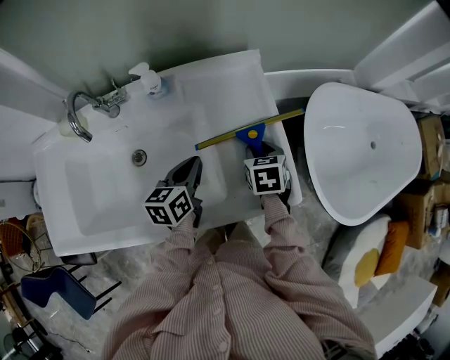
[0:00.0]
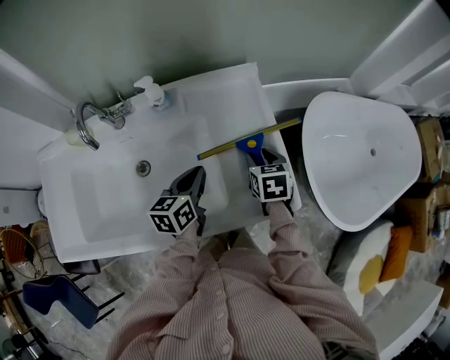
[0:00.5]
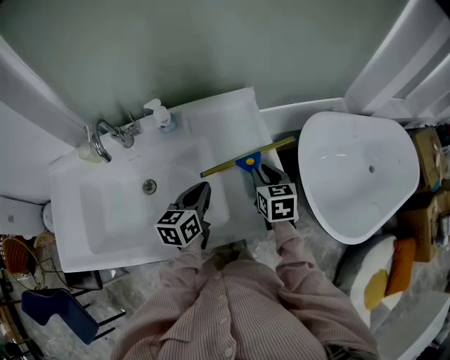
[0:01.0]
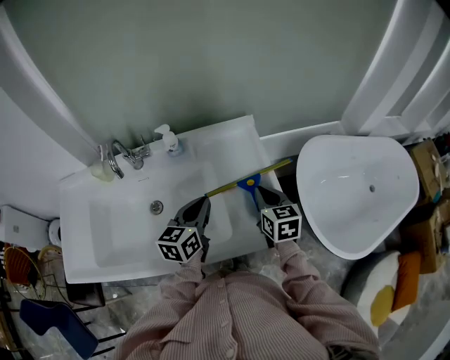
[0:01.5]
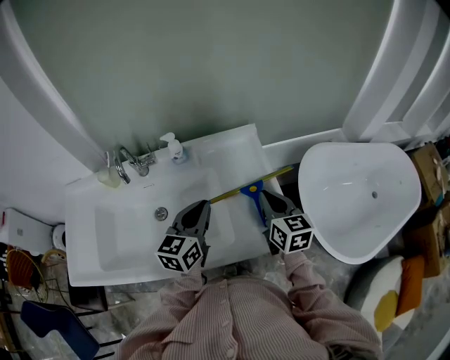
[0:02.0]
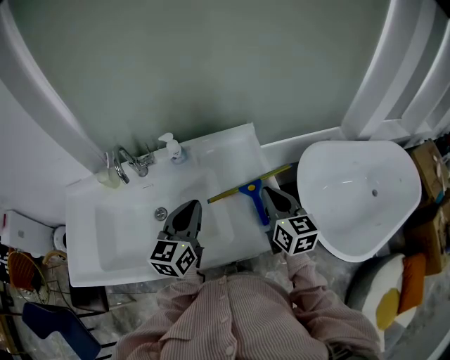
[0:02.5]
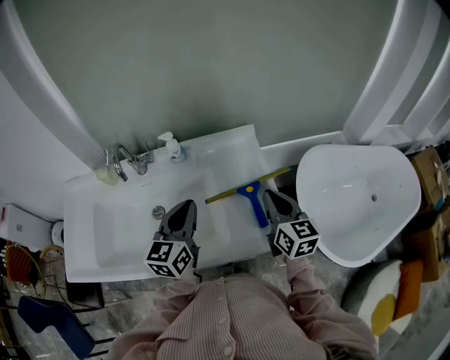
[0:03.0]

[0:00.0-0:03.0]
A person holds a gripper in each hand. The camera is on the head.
0:00.0 to 0:01.5: Both grippers move upward, some 10 cm. The right gripper turns by approximately 30 degrees, and closes up.
0:01.5 to 0:03.0: Both grippers move upward, about 10 cm.

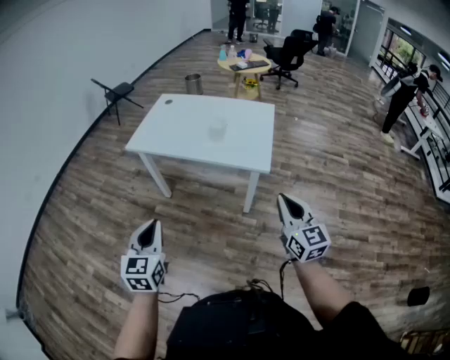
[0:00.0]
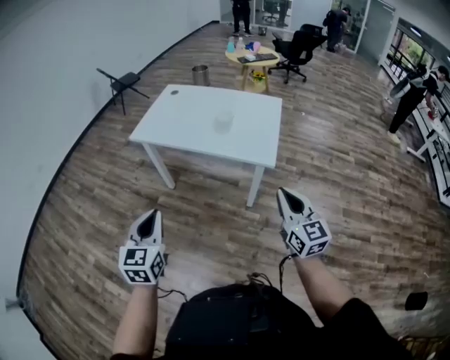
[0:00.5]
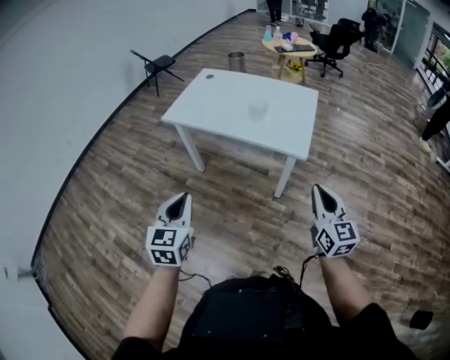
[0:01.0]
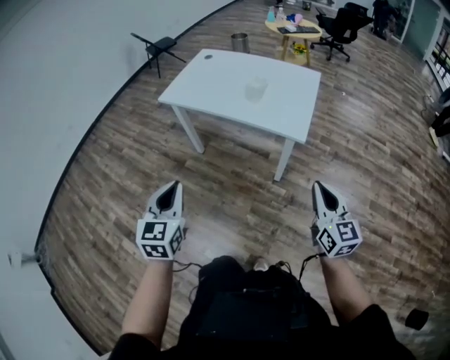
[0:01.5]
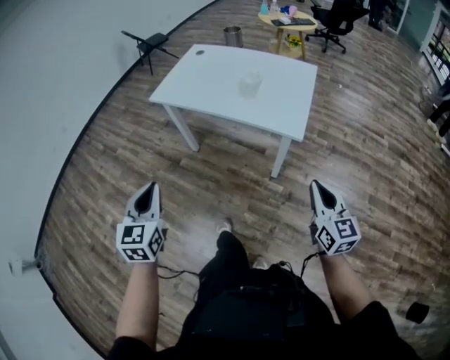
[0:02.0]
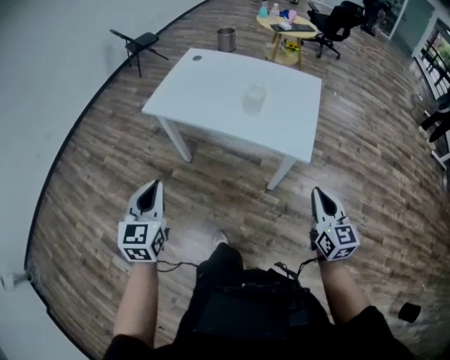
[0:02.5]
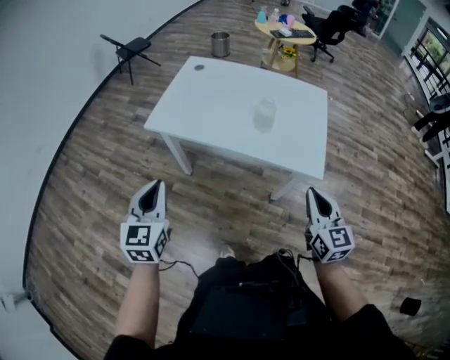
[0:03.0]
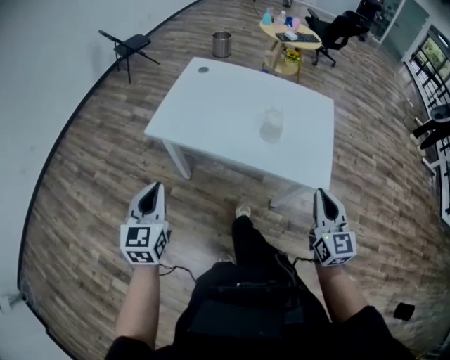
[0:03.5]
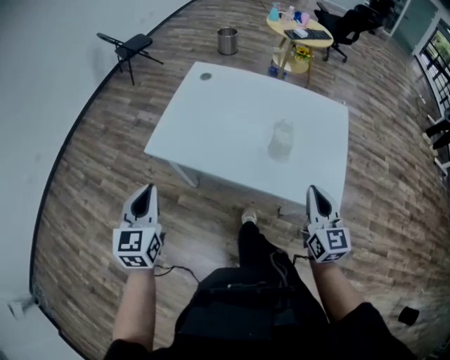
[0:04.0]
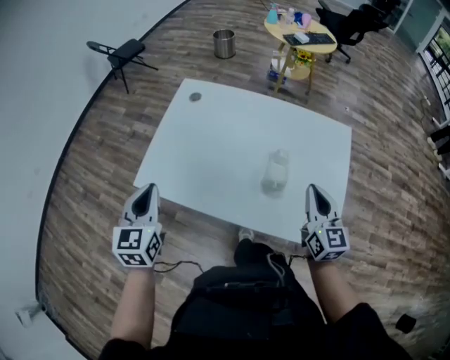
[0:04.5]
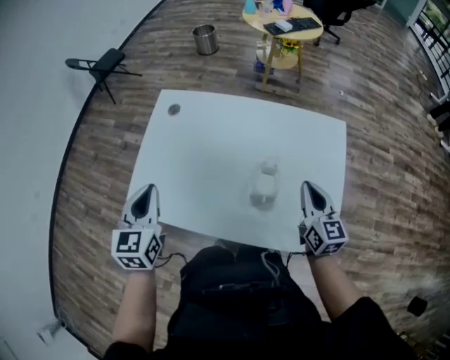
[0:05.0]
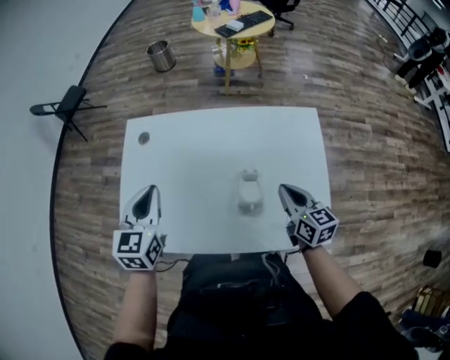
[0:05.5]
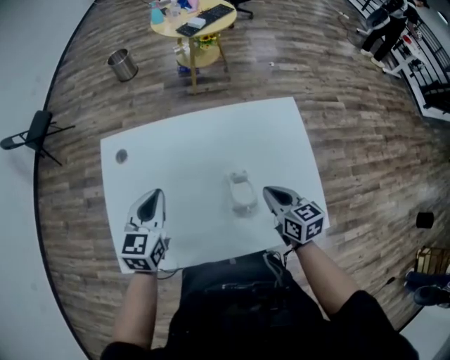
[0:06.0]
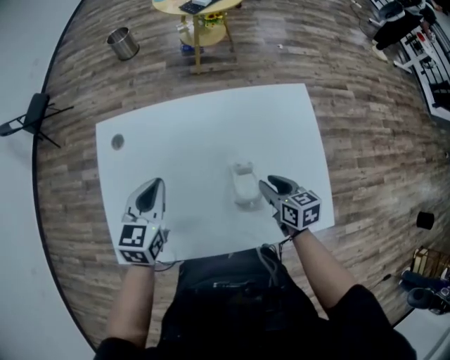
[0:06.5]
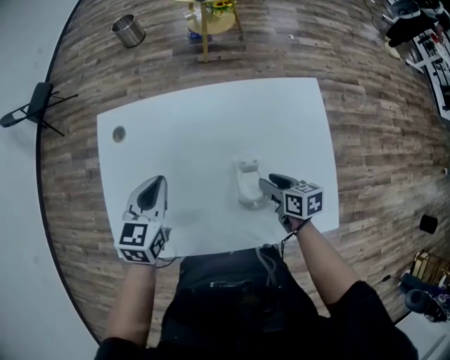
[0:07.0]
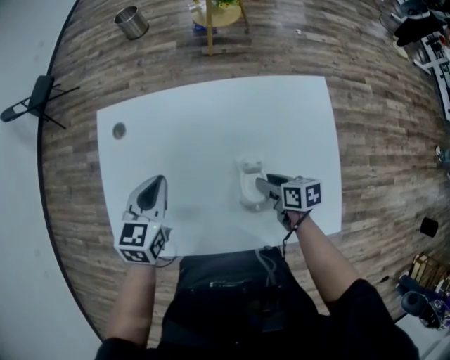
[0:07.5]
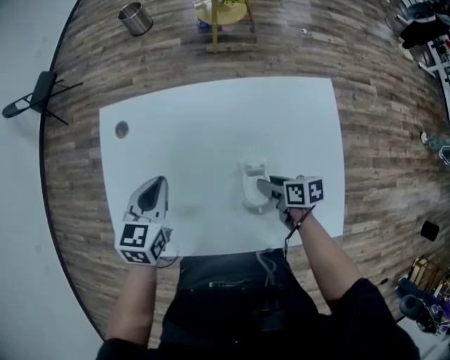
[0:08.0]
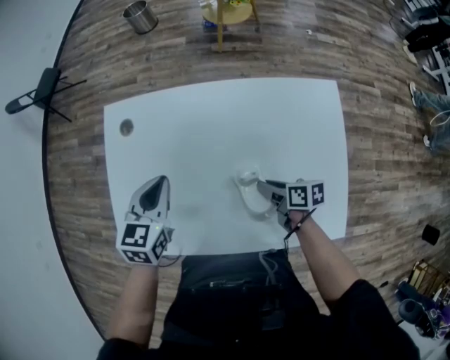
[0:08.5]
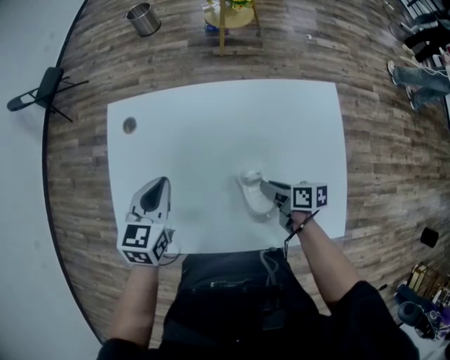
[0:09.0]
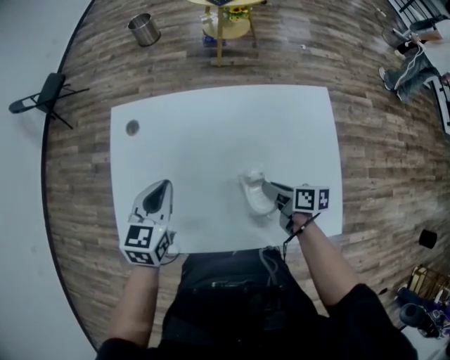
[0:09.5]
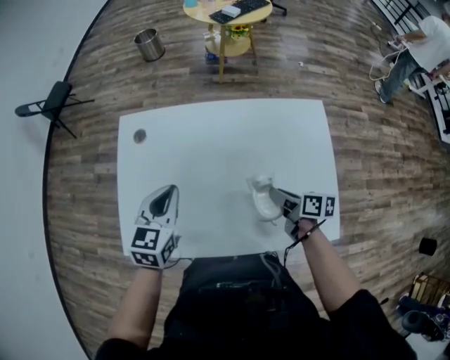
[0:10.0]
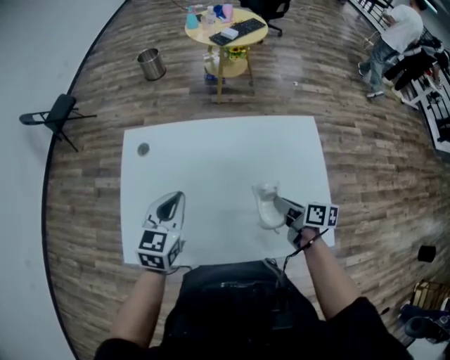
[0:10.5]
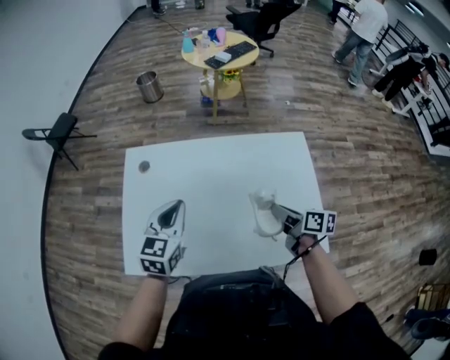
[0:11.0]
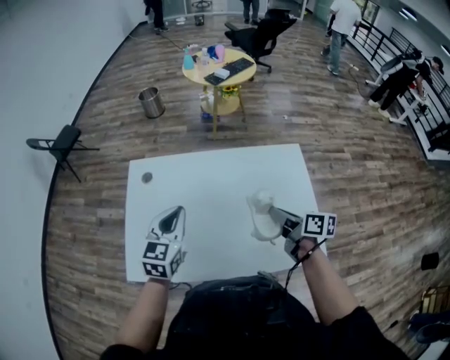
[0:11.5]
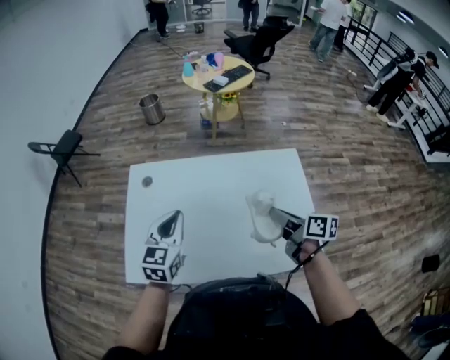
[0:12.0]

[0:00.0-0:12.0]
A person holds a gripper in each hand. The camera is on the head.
0:00.0 to 0:02.0: The right gripper is displaced downward and to the right by about 10 cm.
0:02.0 to 0:04.0: The left gripper travels forward by some 40 cm, while the right gripper heads forward and to the left, covering about 40 cm.
0:04.0 to 0:06.0: The right gripper travels forward and downward by some 25 cm, and swivels roughly 30 degrees, while the left gripper travels forward and to the right by some 40 cm, and swivels approximately 40 degrees.
0:06.0 to 0:08.0: The left gripper goes about 5 cm downward; the right gripper goes roughly 15 cm downward, rotates some 40 degrees, and opens its fingers.
0:08.0 to 0:10.0: The right gripper shifts approximately 5 cm upward; the left gripper moves some 5 cm.
0:10.0 to 0:12.0: The left gripper moves upward, some 5 cm. Meanwhile the right gripper shifts about 15 cm upward.

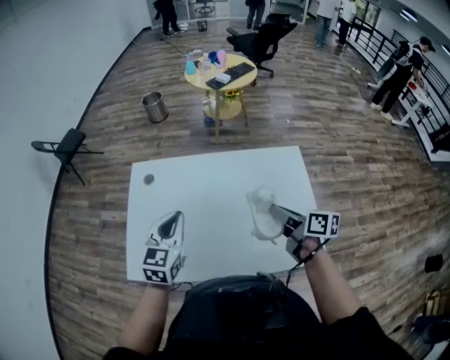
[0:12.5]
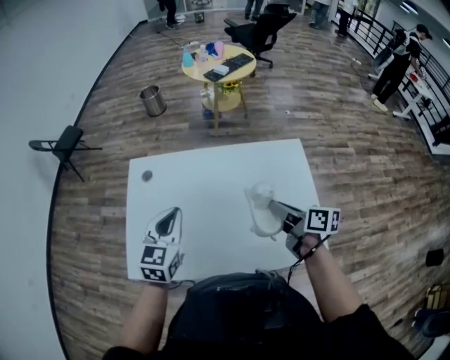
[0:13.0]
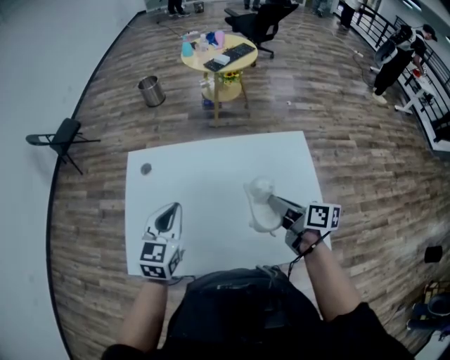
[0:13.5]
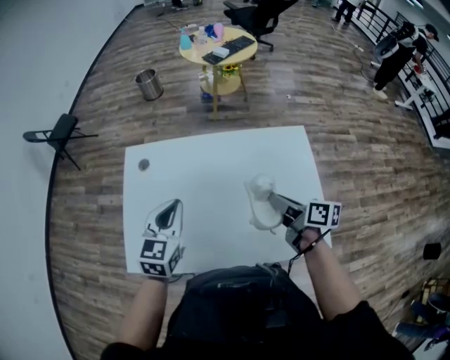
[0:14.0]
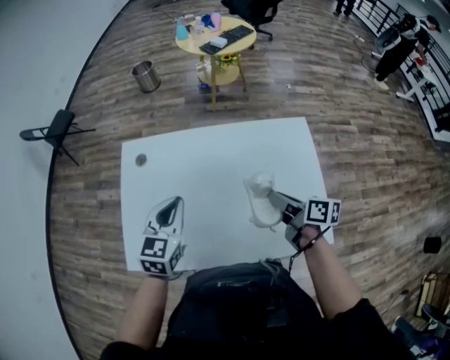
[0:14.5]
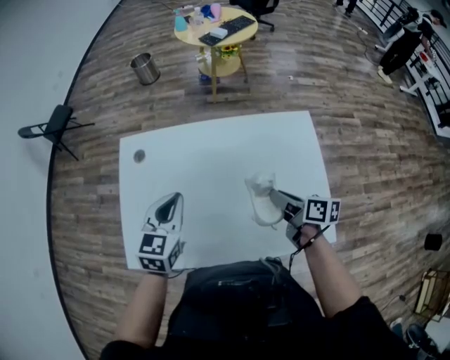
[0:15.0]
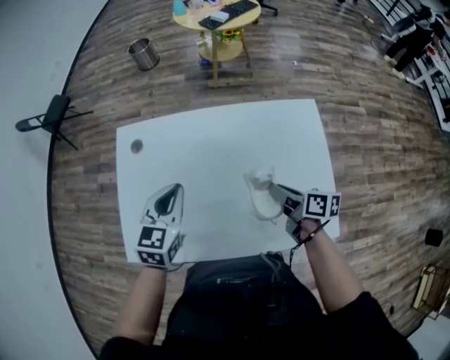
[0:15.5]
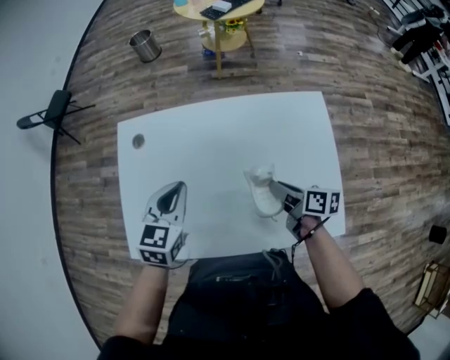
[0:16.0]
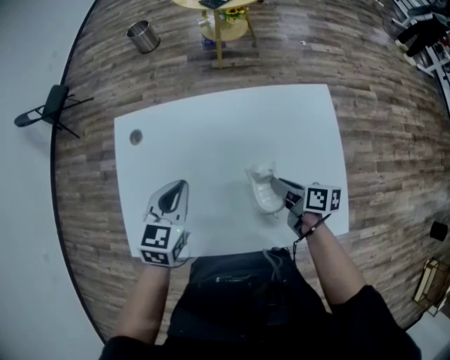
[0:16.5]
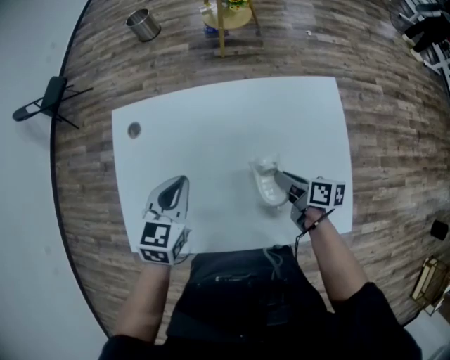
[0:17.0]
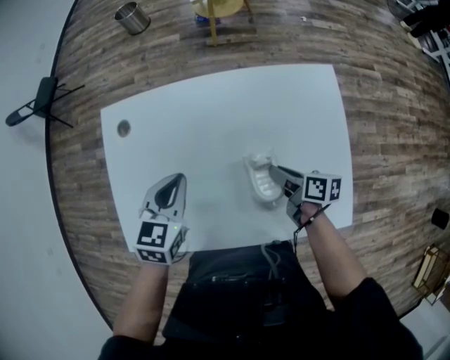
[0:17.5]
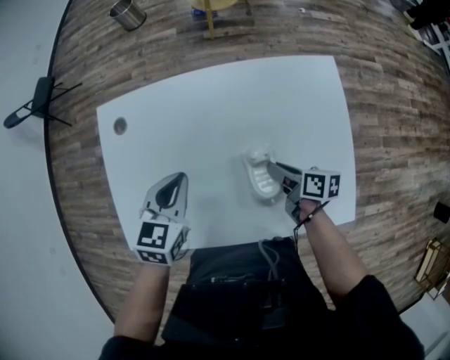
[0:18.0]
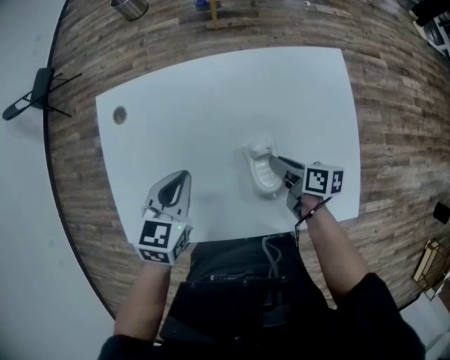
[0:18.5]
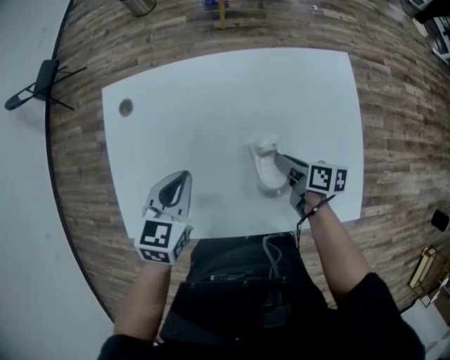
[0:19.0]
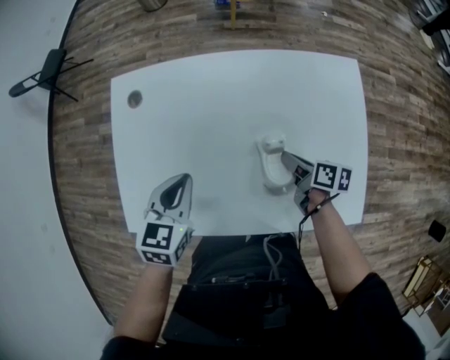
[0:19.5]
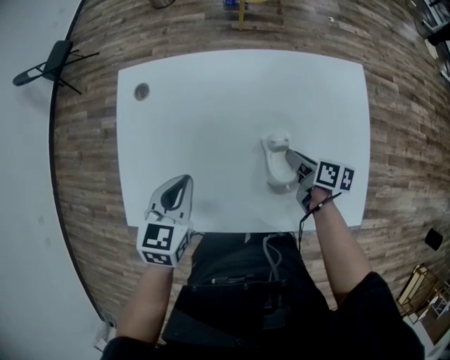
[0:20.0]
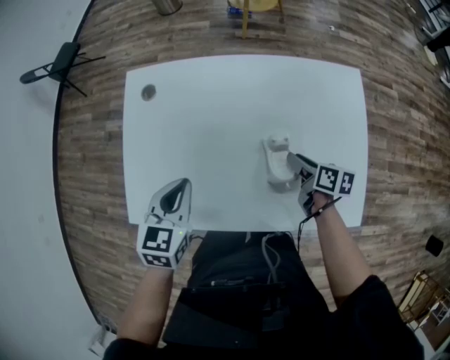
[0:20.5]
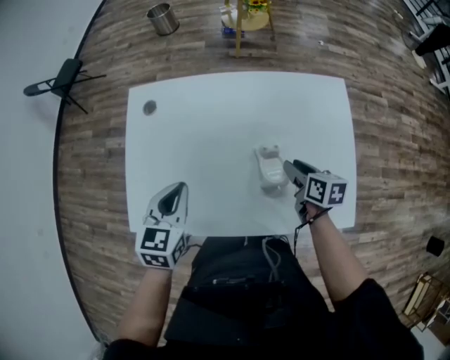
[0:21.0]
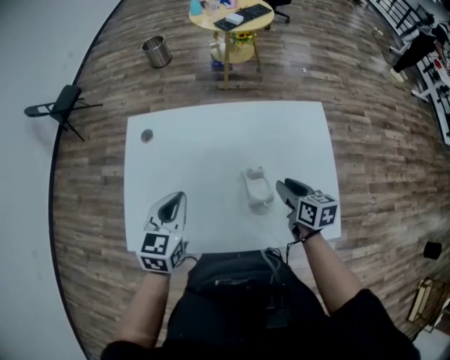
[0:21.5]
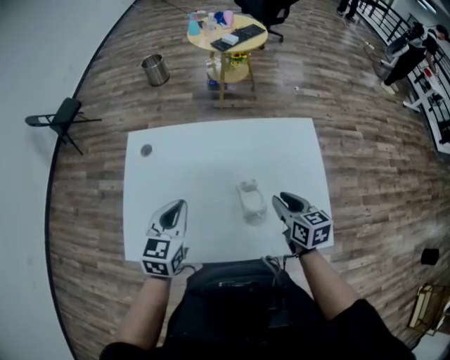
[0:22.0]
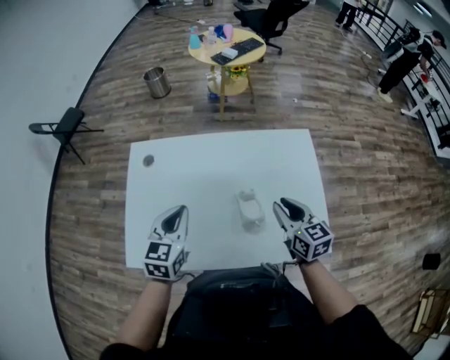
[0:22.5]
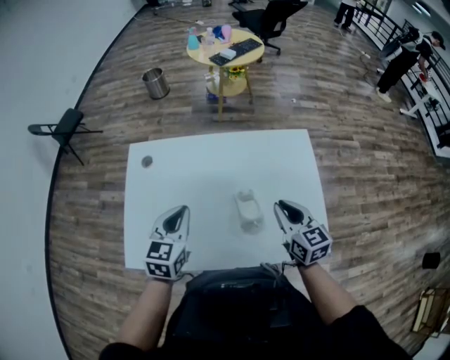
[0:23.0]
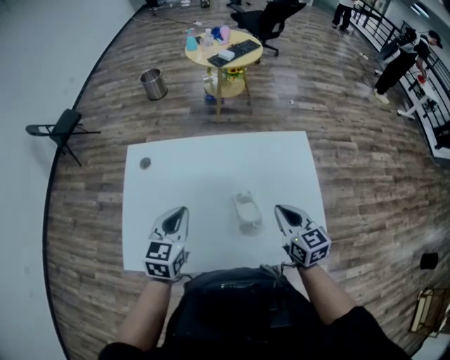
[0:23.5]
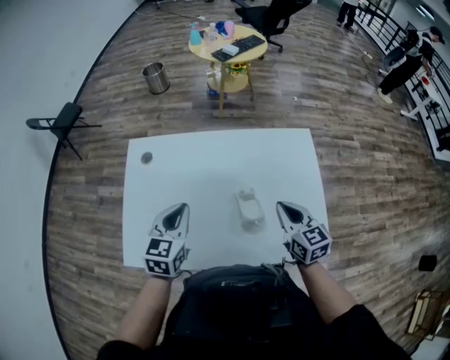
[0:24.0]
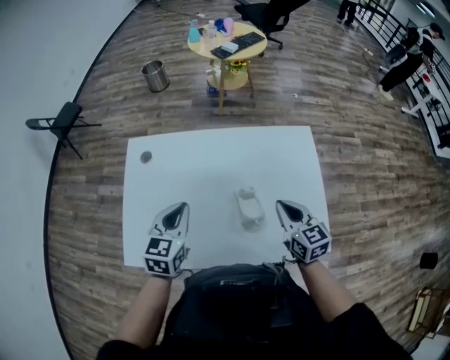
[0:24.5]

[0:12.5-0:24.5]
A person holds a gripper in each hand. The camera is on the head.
0:12.5 to 0:14.5: The right gripper shifts about 5 cm downward.
0:14.5 to 0:16.5: The left gripper goes approximately 5 cm downward; the right gripper shifts some 10 cm downward.
0:16.5 to 0:18.5: The two grippers go some 5 cm downward.
0:18.5 to 0:20.5: The left gripper heads to the left and backward, covering roughly 10 cm.
0:20.5 to 0:22.5: The left gripper shifts approximately 10 cm upward. The right gripper goes some 20 cm upward, and rotates some 50 degrees.
0:22.5 to 0:24.5: The right gripper closes its fingers.
